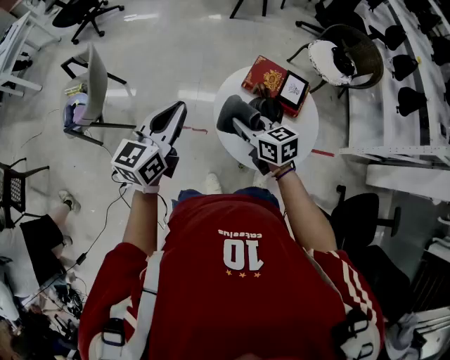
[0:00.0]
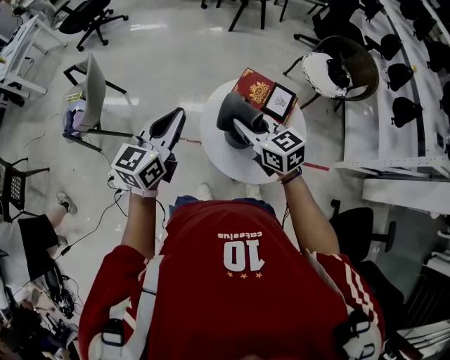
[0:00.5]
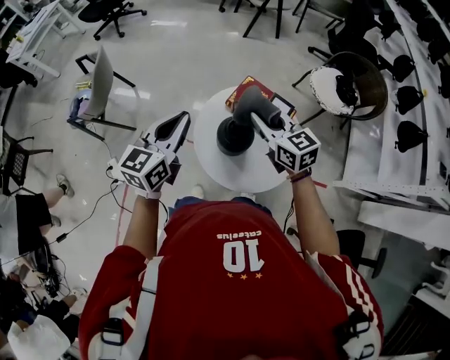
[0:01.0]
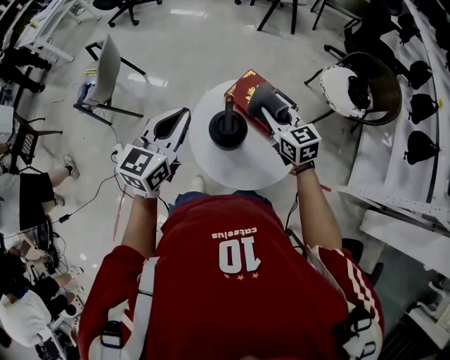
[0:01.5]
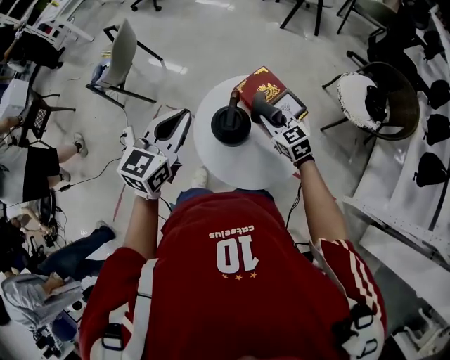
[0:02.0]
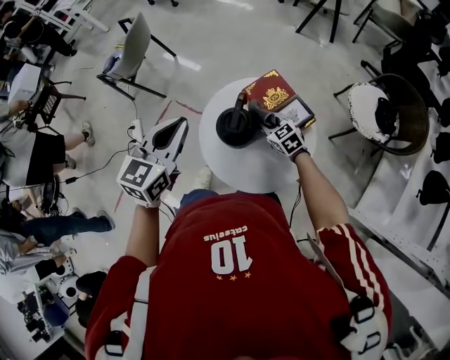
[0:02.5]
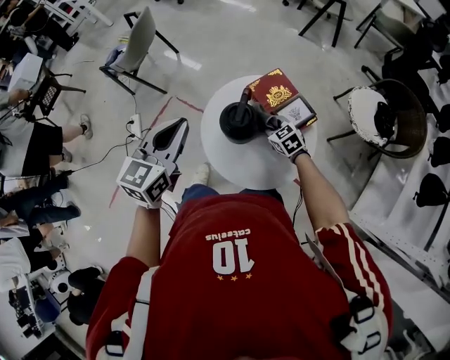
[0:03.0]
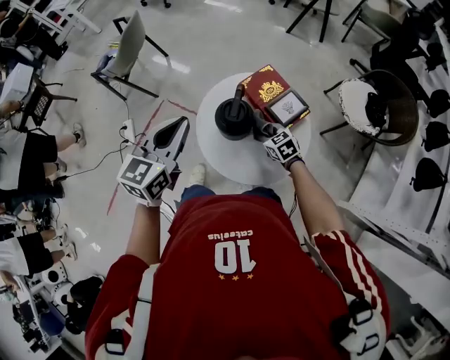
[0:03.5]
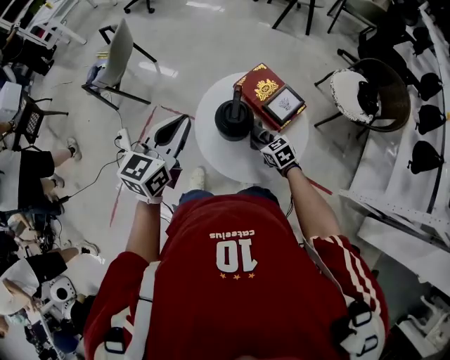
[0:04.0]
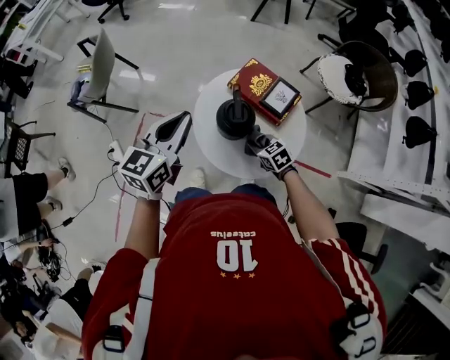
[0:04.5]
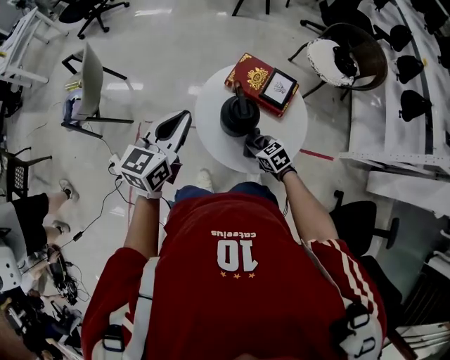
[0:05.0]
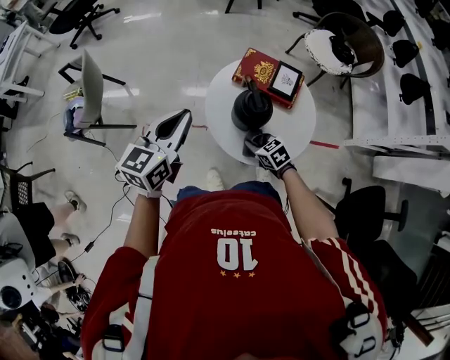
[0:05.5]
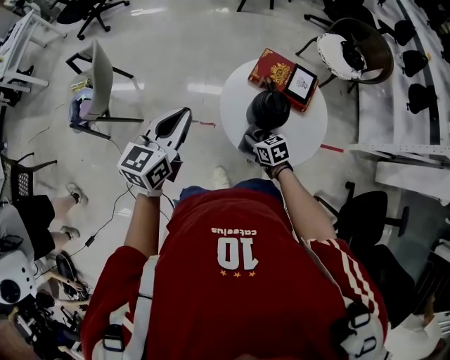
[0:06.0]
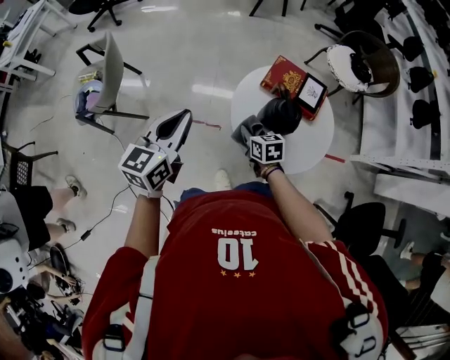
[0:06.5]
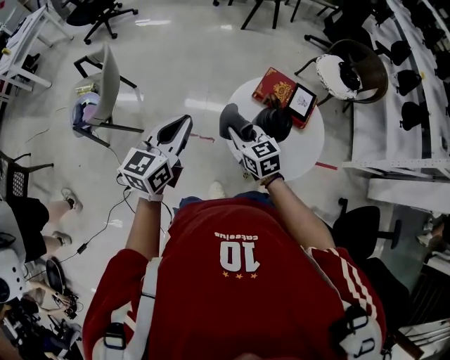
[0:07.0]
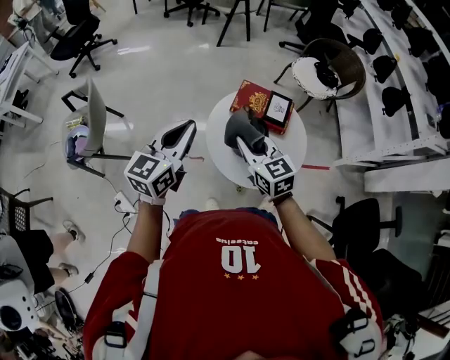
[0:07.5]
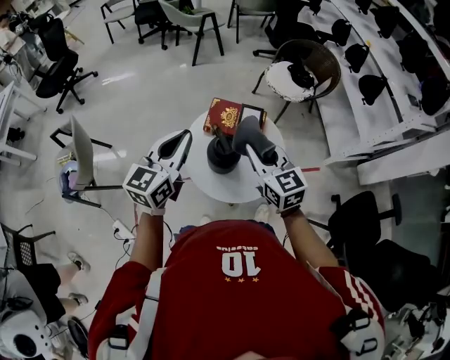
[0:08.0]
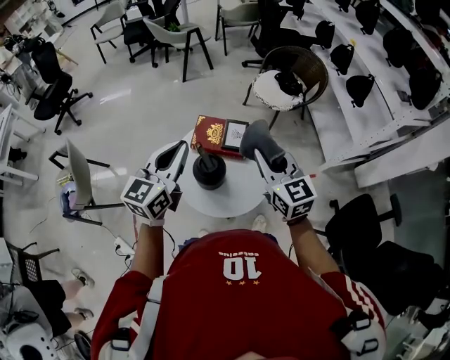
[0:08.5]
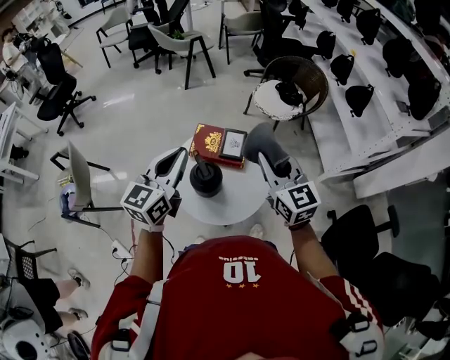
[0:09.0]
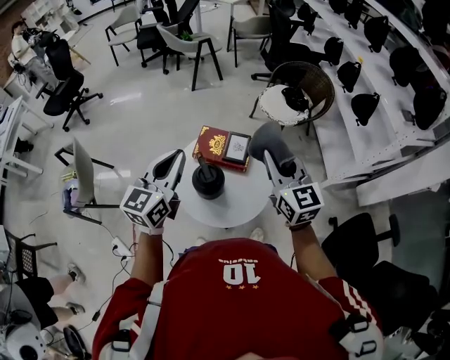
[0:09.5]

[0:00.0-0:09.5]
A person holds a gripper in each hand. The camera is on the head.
0.0 to 2.0 s: The two grippers go approximately 20 cm to the right. The left gripper swivels approximately 20 degrees. The right gripper changes its angle by some 30 degrees.
2.0 to 4.0 s: The right gripper travels downward and backward by roughly 15 cm.
4.0 to 5.5 s: The right gripper moves to the left, roughly 10 cm, while the left gripper heads to the left and forward, covering approximately 10 cm, and swivels approximately 20 degrees.
5.5 to 7.5 s: The right gripper travels upward by some 25 cm, and changes its angle by approximately 40 degrees. The left gripper travels upward by about 5 cm, and goes to the left and returns, roughly 10 cm each way.
7.5 to 9.5 s: The left gripper goes some 15 cm to the right and upward. The right gripper moves to the right and upward, some 30 cm, and swivels about 20 degrees.

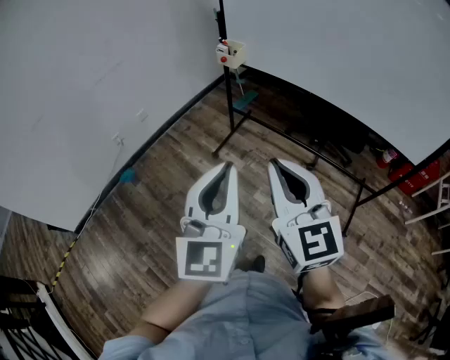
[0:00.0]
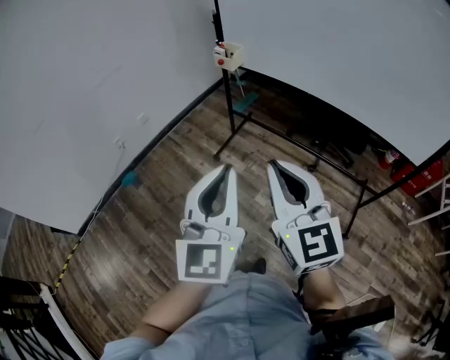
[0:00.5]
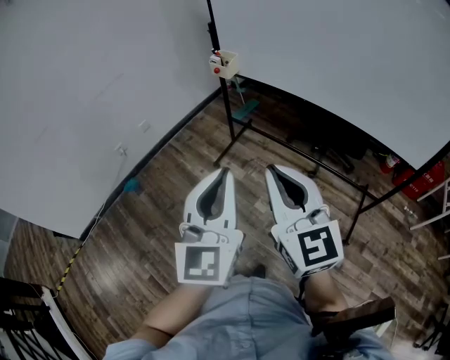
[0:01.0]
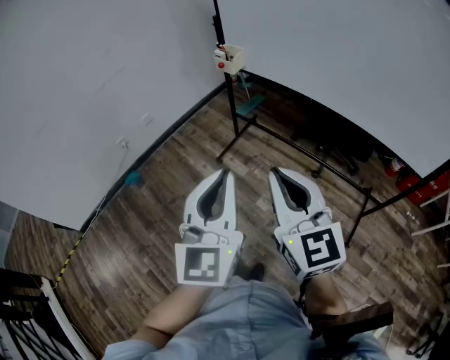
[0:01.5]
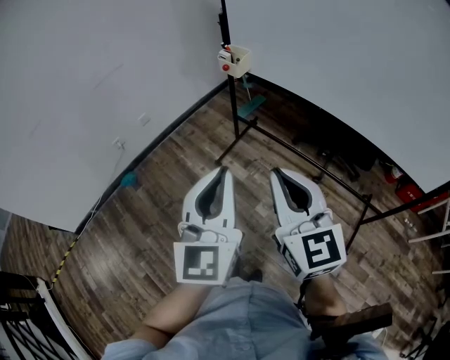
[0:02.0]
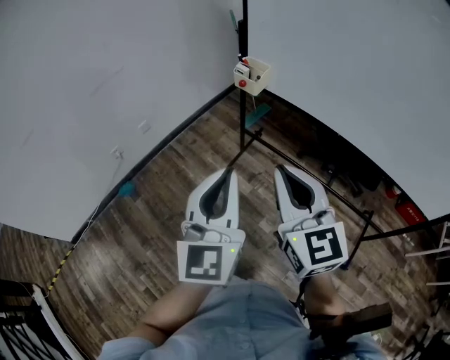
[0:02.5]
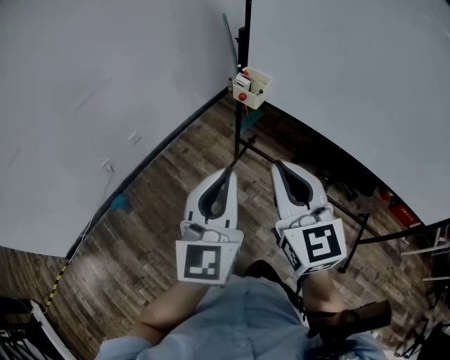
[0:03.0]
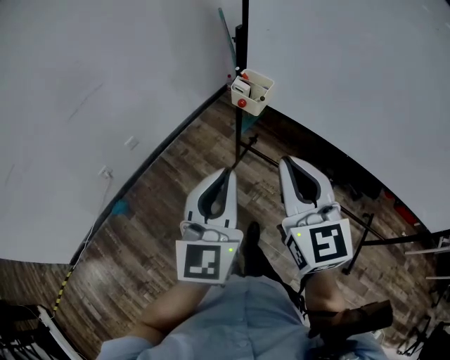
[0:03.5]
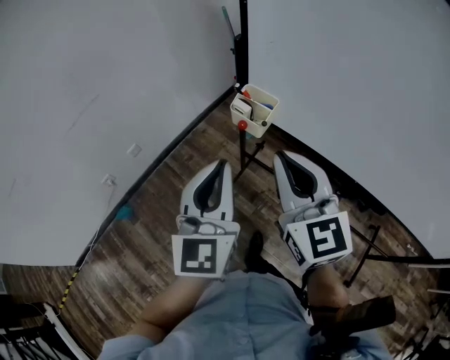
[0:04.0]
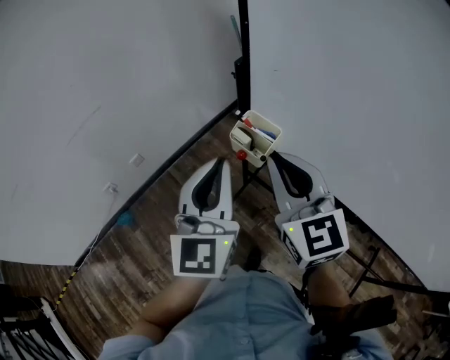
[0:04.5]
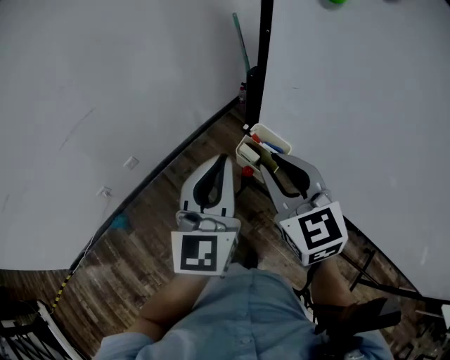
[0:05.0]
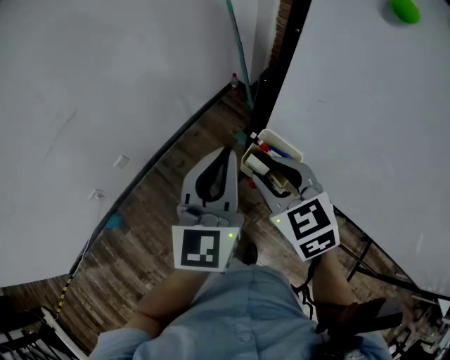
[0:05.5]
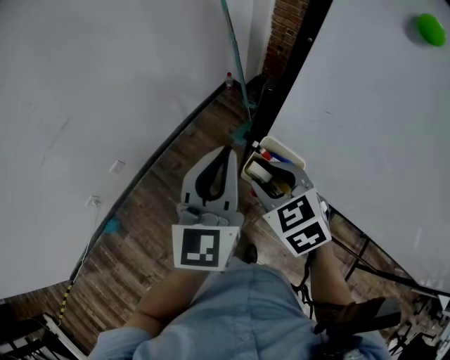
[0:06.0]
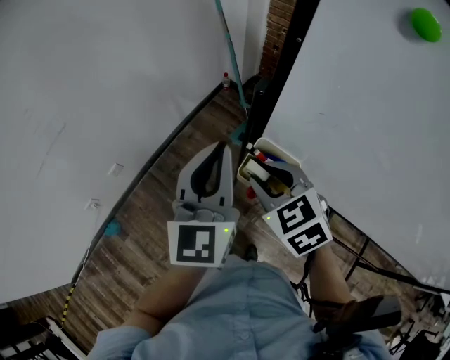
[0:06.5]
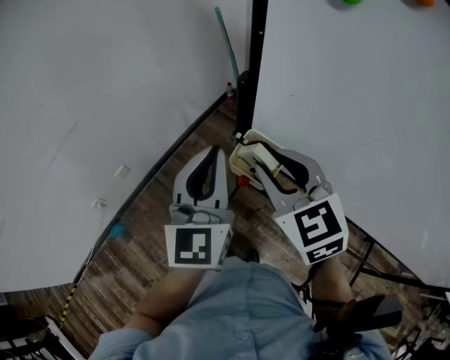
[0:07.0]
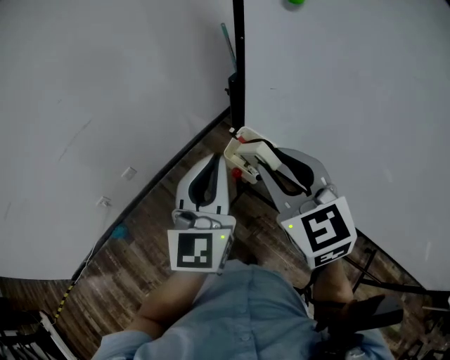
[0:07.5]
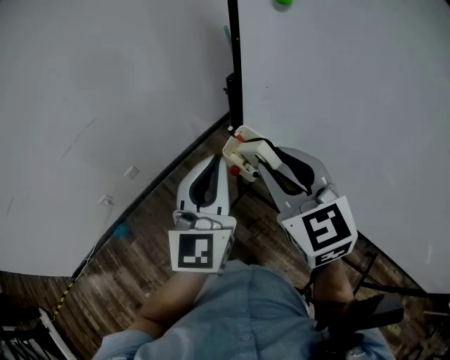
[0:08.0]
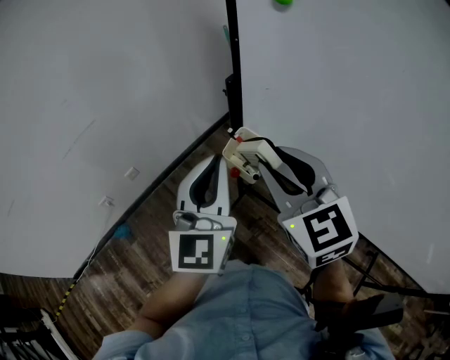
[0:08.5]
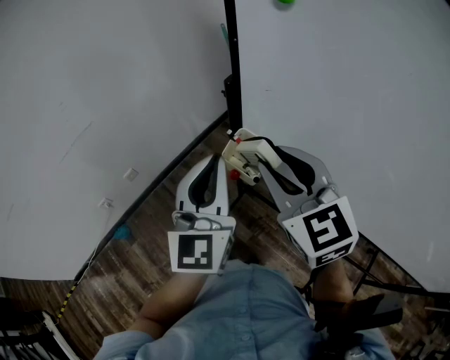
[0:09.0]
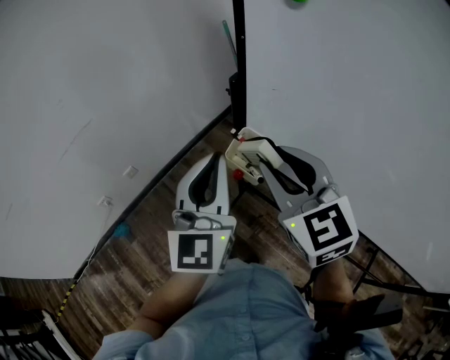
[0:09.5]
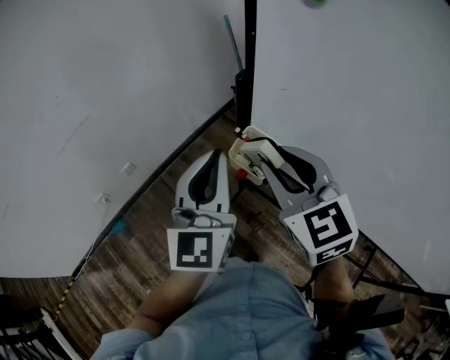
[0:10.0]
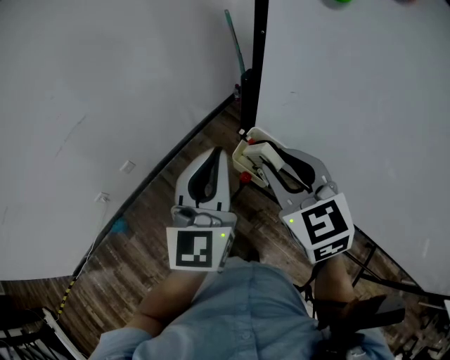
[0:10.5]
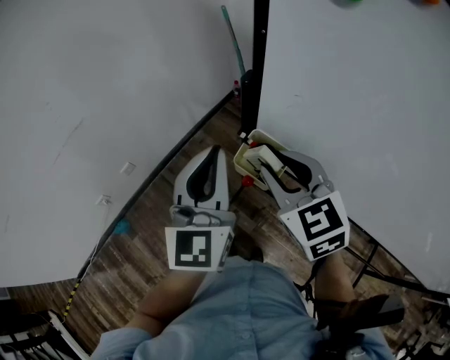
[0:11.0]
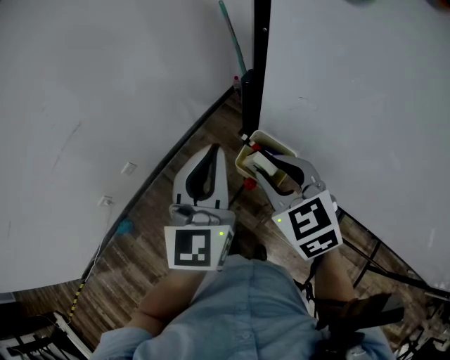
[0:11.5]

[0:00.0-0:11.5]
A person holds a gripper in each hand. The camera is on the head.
0.0 to 2.0 s: Both grippers travel together forward, about 10 cm.
2.0 to 4.0 s: The two grippers go approximately 40 cm forward.
4.0 to 6.0 s: The right gripper heads forward and downward, covering approximately 25 cm, angles its fingers downward, by some 40 degrees, and opens its fingers. Meanwhile the left gripper goes approximately 25 cm forward.
6.0 to 7.5 s: The left gripper shifts about 10 cm backward; the right gripper travels upward and backward by some 20 cm, and turns by roughly 30 degrees.
7.5 to 9.5 s: The grippers move only a little.
9.5 to 11.5 s: The left gripper moves forward, approximately 10 cm; the right gripper shifts approximately 10 cm downward and forward.

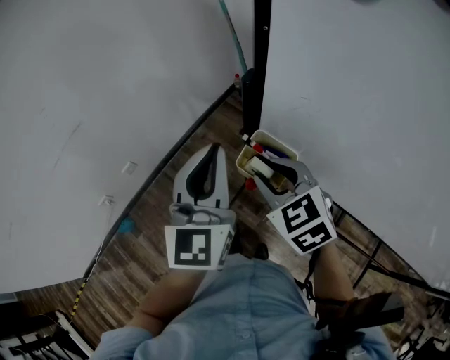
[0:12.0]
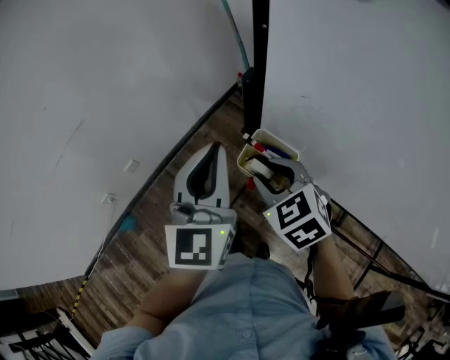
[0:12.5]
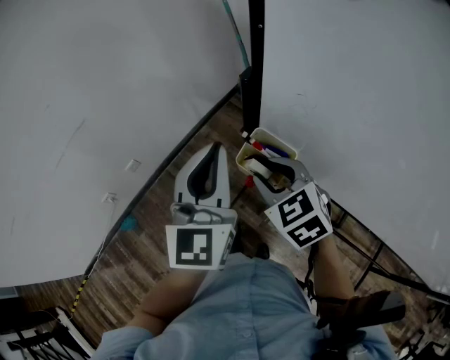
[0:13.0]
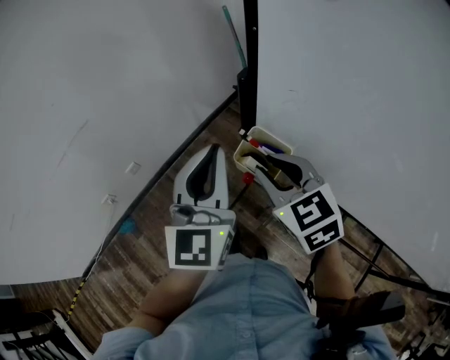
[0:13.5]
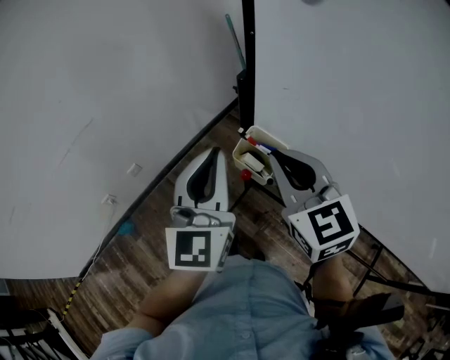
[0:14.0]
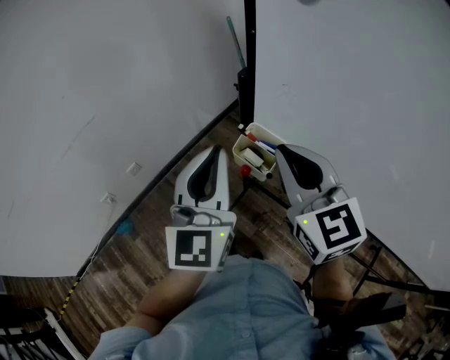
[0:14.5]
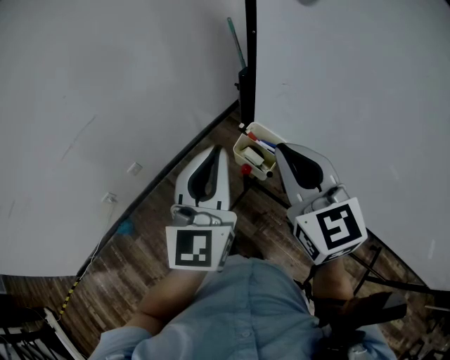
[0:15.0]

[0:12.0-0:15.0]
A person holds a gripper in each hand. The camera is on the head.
12.0 to 13.5 s: The grippers move only a little.
13.5 to 15.0 s: The left gripper goes roughly 5 cm backward, while the right gripper is displaced upward by about 10 cm, turns by about 20 degrees, and closes up.

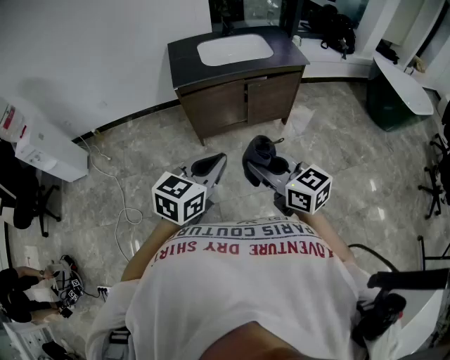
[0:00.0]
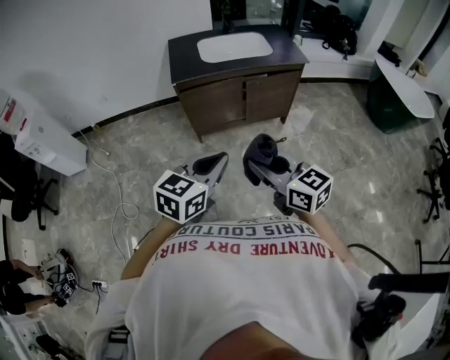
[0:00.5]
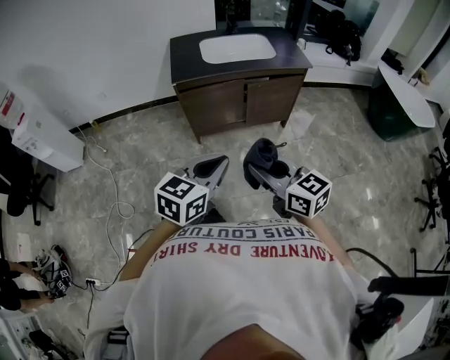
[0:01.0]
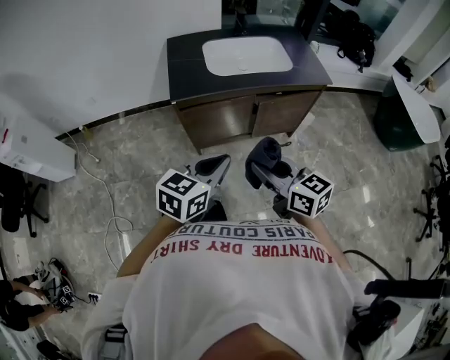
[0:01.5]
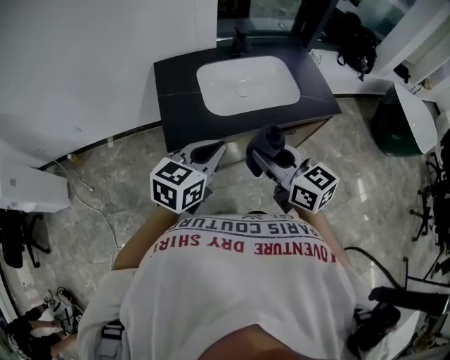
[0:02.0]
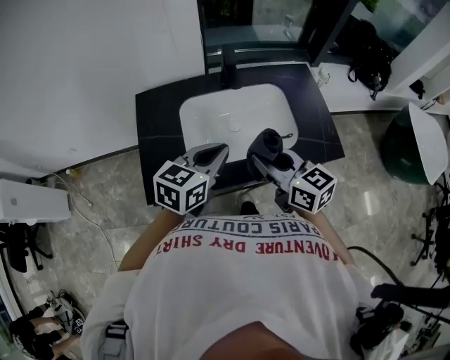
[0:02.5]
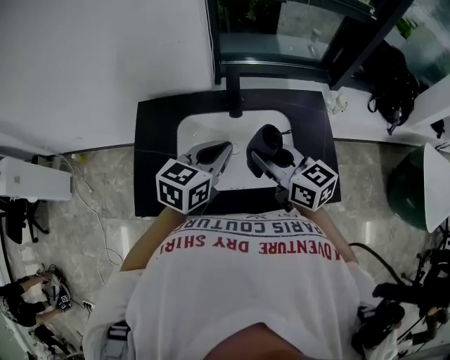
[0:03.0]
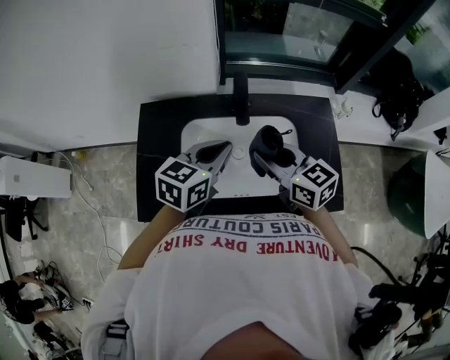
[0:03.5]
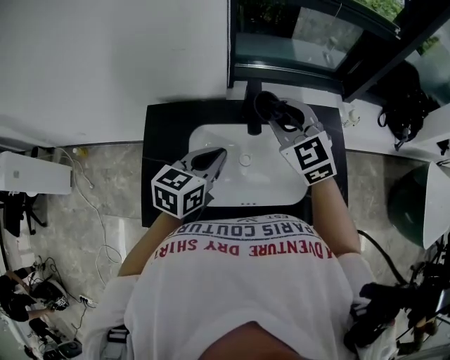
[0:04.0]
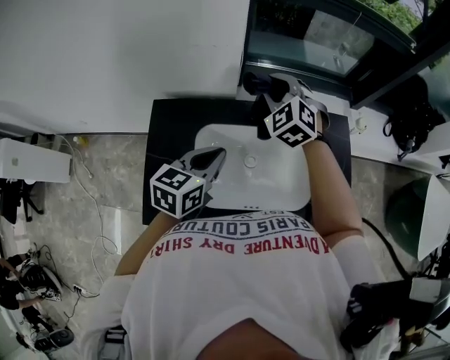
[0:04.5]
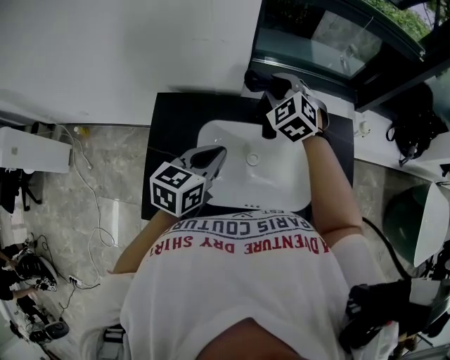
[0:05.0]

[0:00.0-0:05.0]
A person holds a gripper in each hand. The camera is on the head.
0.0 to 2.5 s: Both grippers are carried forward, roughly 70 cm.
2.5 to 5.0 s: The left gripper is displaced forward by some 20 cm. The right gripper shifts roughly 40 cm forward, and rolls counterclockwise, seen from behind, by approximately 60 degrees.
